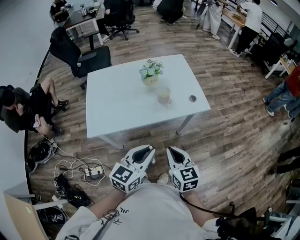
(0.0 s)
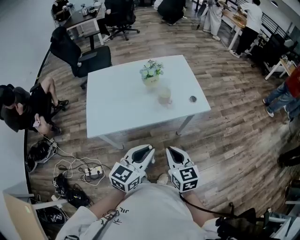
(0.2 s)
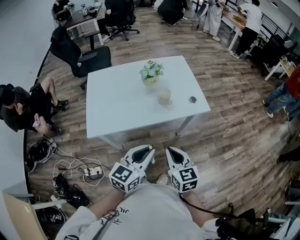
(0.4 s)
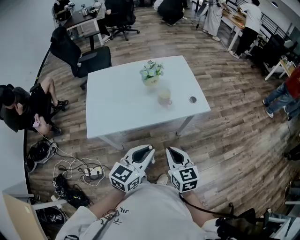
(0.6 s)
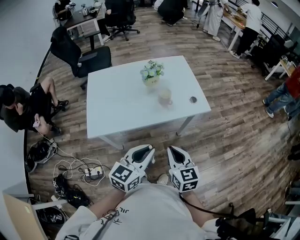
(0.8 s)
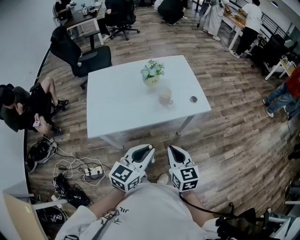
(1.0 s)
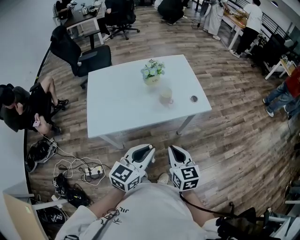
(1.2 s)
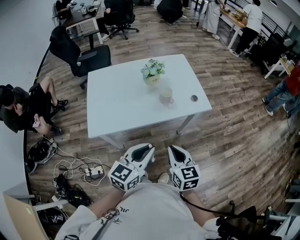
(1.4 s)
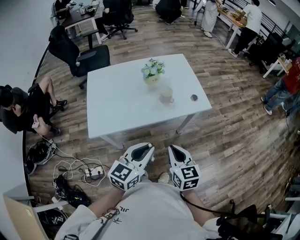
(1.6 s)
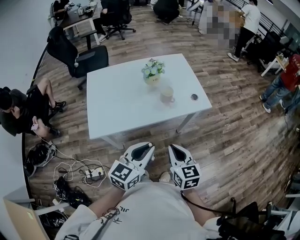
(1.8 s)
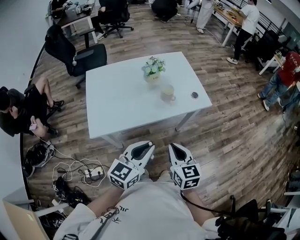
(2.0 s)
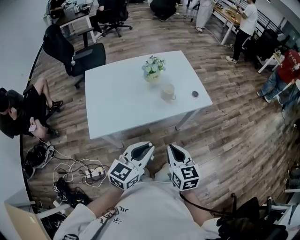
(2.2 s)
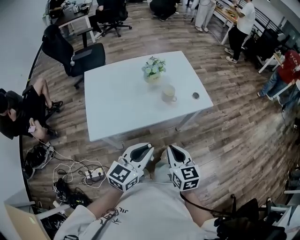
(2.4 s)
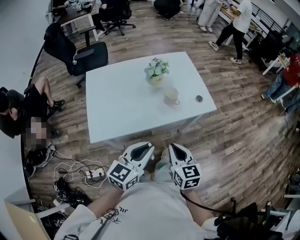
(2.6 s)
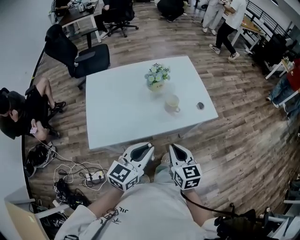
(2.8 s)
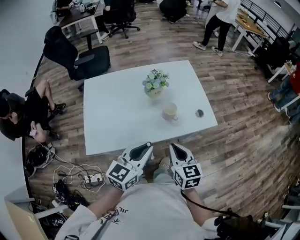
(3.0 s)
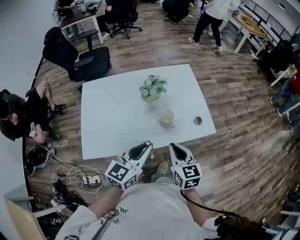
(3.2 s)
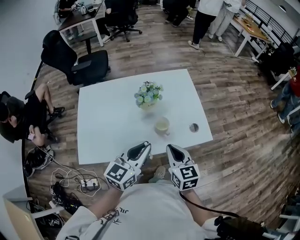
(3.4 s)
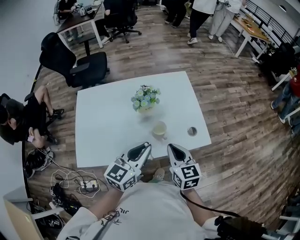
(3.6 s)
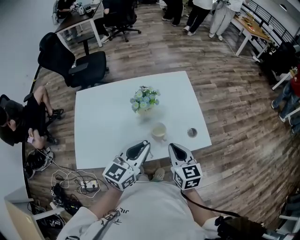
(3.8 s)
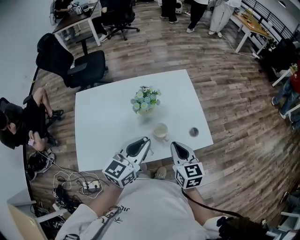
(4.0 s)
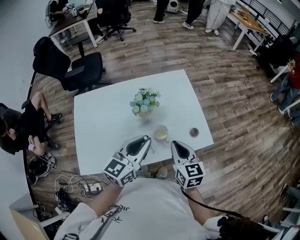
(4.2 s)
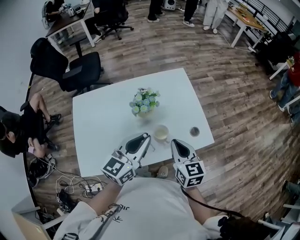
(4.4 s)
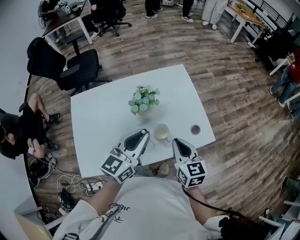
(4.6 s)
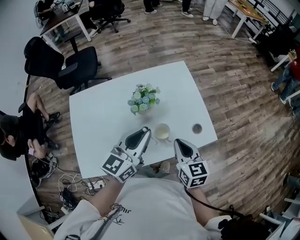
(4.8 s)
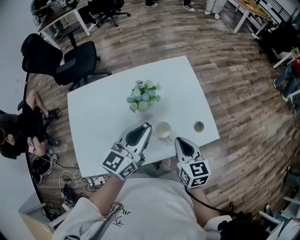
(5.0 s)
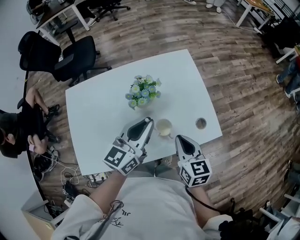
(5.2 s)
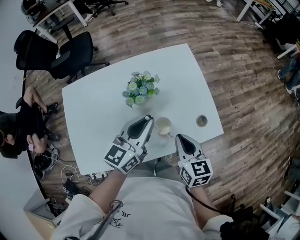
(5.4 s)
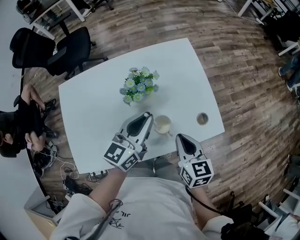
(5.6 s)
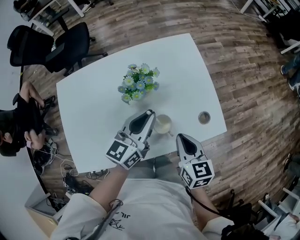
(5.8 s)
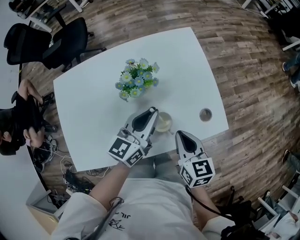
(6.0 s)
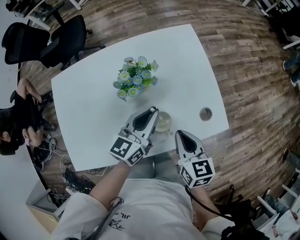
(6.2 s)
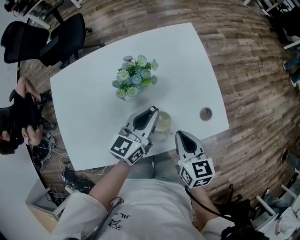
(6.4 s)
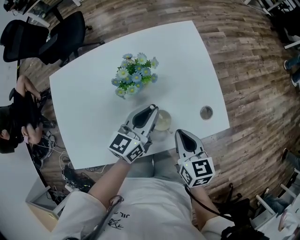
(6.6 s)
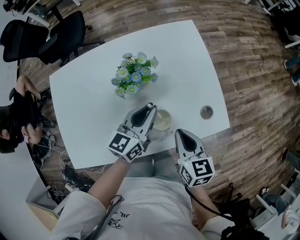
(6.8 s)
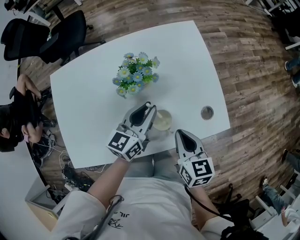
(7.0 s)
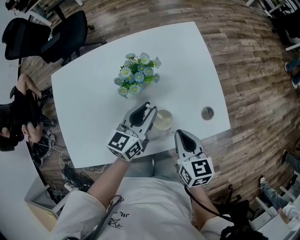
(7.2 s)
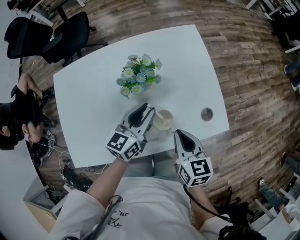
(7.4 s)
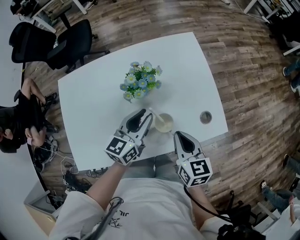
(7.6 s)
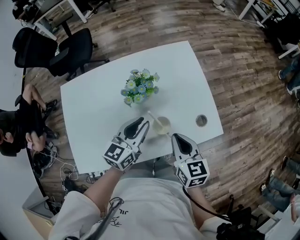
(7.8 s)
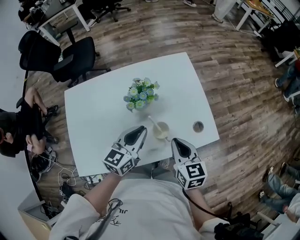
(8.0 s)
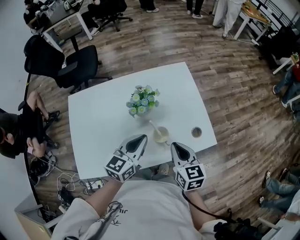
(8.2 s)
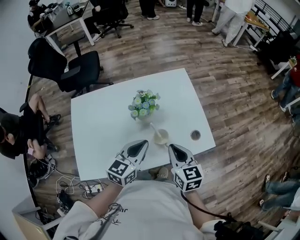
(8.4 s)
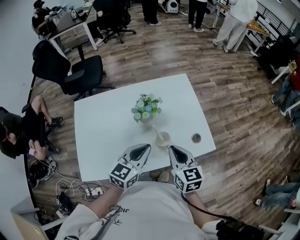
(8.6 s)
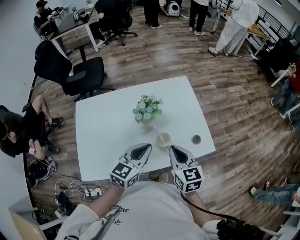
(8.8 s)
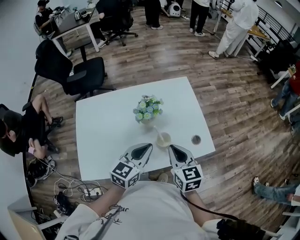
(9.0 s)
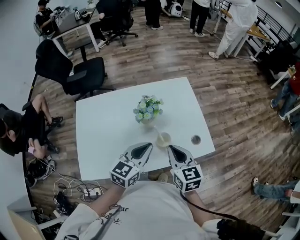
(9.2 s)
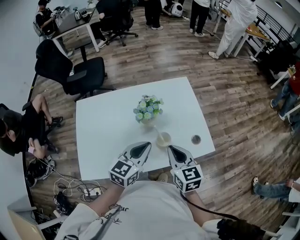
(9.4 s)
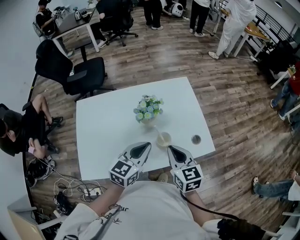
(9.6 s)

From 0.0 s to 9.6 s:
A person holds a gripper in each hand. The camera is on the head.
From 0.0 s to 1.6 s: The grippers move only a little.
From 1.6 s to 3.2 s: Both grippers move forward, roughly 20 cm.
From 3.2 s to 4.8 s: The two grippers go about 15 cm forward.
From 4.8 s to 6.4 s: The left gripper heads downward and forward, covering approximately 15 cm. Meanwhile the right gripper is displaced downward by approximately 10 cm.
From 6.4 s to 8.0 s: The right gripper is displaced upward by approximately 5 cm. Meanwhile the left gripper moves about 10 cm.
From 8.0 s to 9.6 s: The right gripper heads upward, covering some 5 cm. The left gripper travels upward and backward by approximately 10 cm.

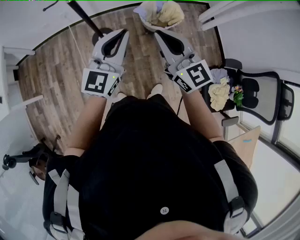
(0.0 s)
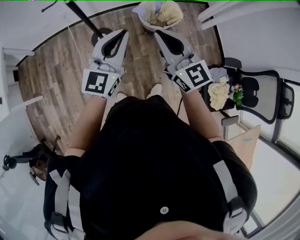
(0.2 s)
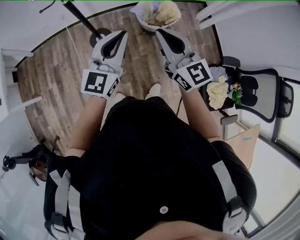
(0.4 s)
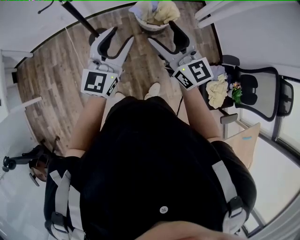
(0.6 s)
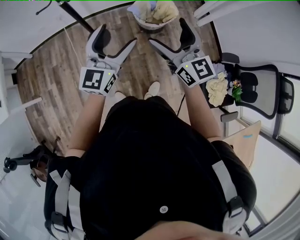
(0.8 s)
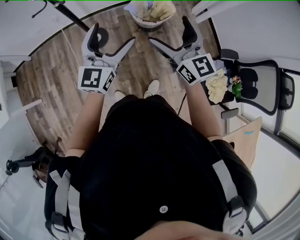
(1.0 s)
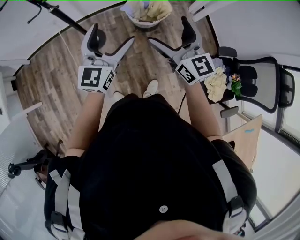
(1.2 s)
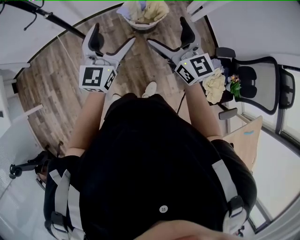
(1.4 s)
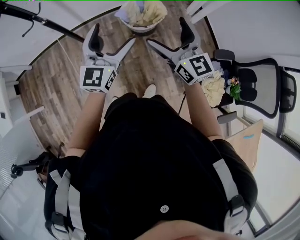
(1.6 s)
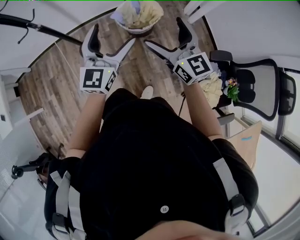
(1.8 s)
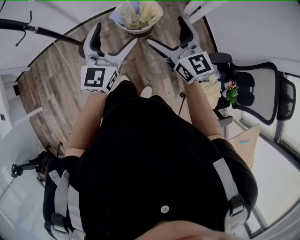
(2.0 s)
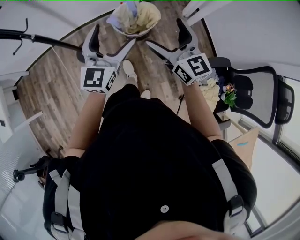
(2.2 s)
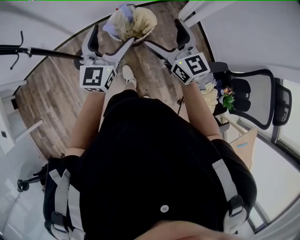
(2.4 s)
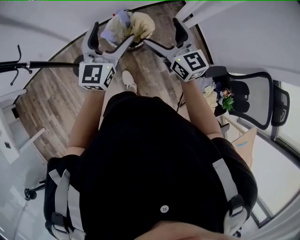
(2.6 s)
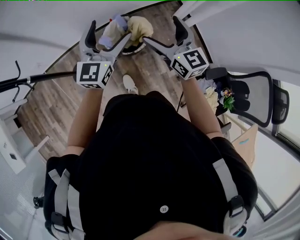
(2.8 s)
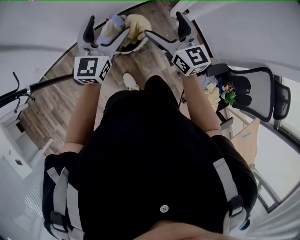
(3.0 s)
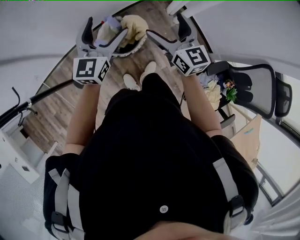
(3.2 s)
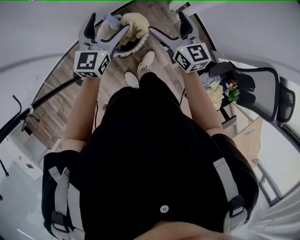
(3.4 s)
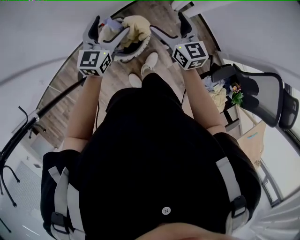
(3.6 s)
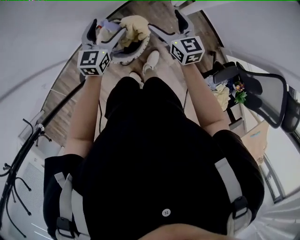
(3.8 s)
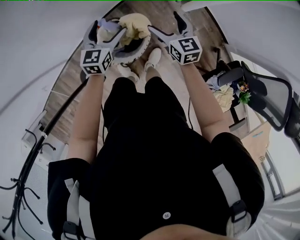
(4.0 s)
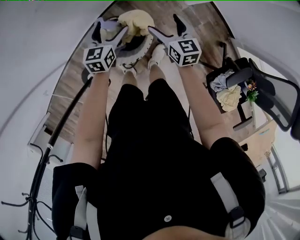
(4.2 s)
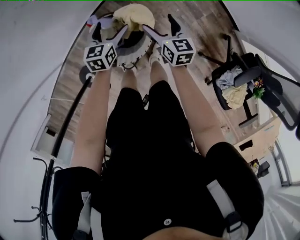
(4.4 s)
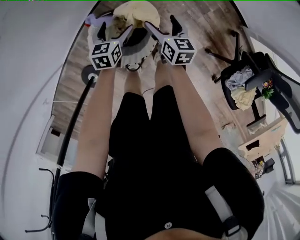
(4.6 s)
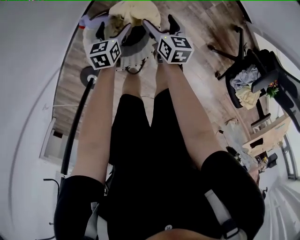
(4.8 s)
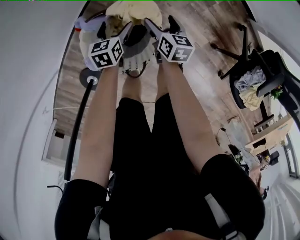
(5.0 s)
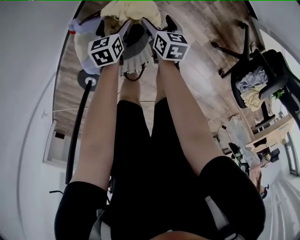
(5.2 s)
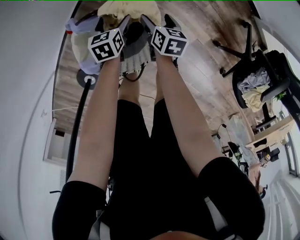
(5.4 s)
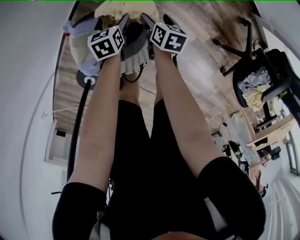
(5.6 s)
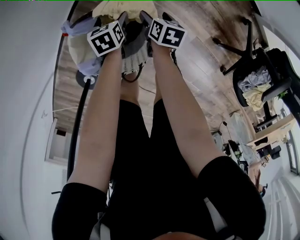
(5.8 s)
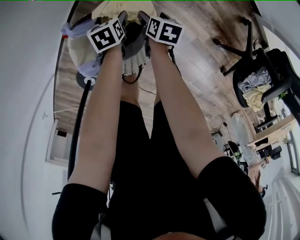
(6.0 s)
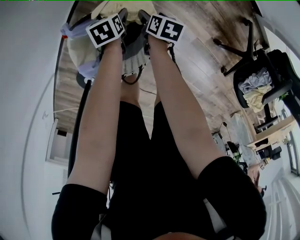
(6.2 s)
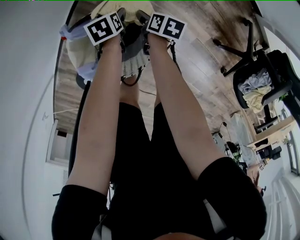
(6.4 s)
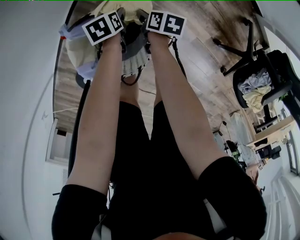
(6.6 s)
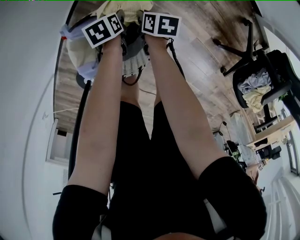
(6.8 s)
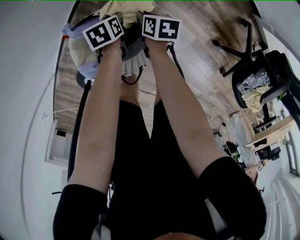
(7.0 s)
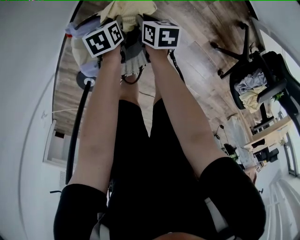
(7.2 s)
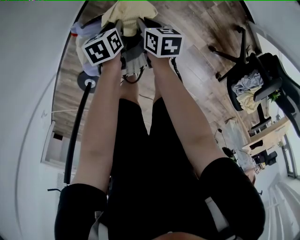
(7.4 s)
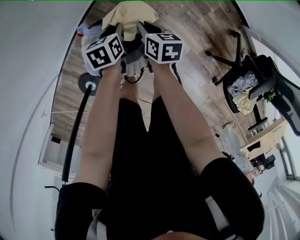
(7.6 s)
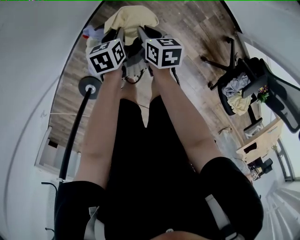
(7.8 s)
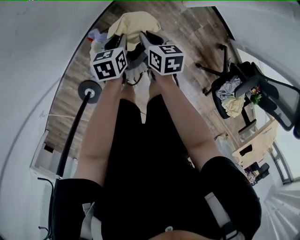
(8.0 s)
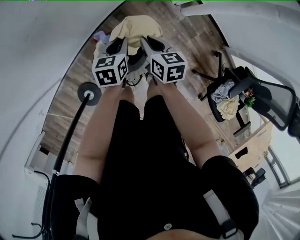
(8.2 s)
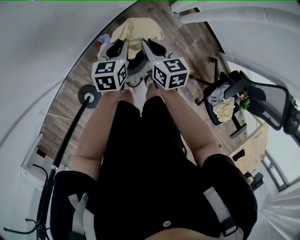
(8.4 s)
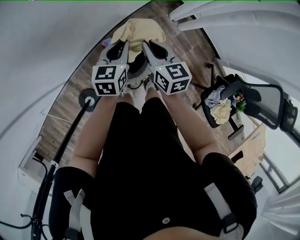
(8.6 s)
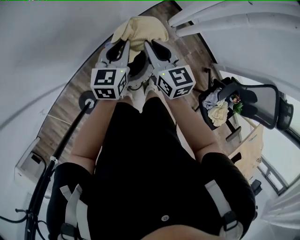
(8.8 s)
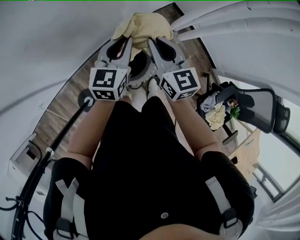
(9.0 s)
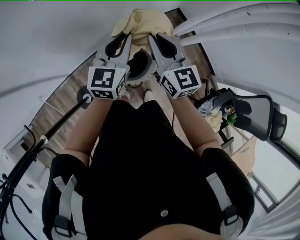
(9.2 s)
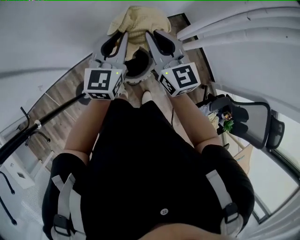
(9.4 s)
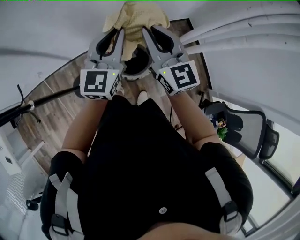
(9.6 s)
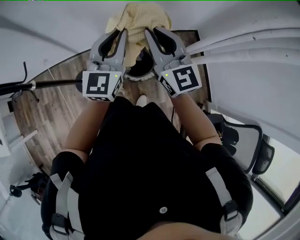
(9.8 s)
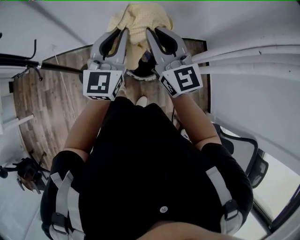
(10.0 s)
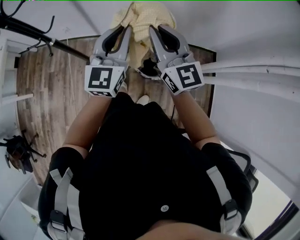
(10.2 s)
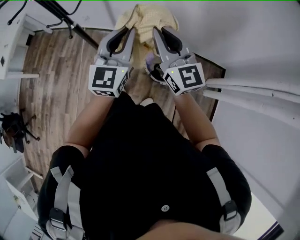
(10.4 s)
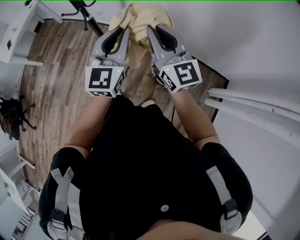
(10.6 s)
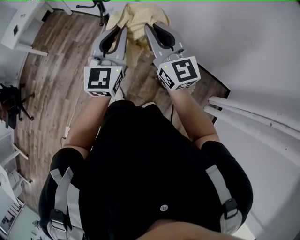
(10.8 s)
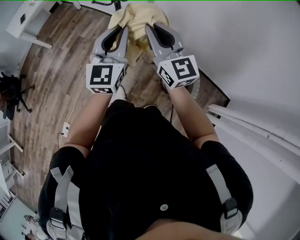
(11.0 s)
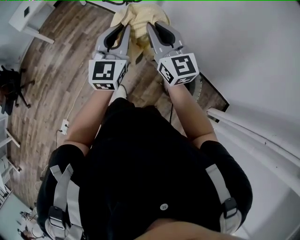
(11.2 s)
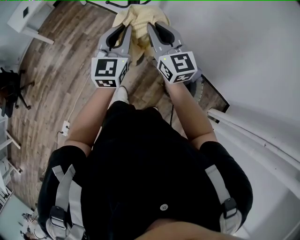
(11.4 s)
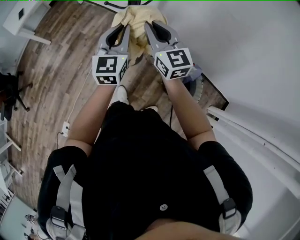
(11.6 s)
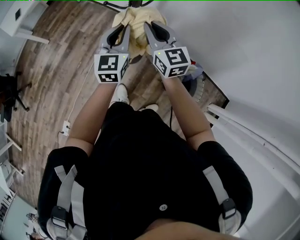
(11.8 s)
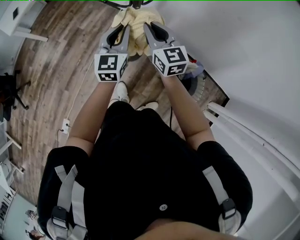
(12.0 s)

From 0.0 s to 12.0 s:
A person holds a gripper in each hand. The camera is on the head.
From 0.0 s to 1.6 s: Both grippers travel together to the right, about 20 cm. The left gripper opens up, while the right gripper opens its fingers.
From 1.6 s to 3.0 s: Both grippers travel together forward, about 35 cm.
From 3.0 s to 4.4 s: The two grippers go about 50 cm downward and forward. The right gripper changes its angle by approximately 40 degrees. Meanwhile the left gripper tilts its fingers approximately 40 degrees downward.
From 4.4 s to 6.0 s: Both grippers travel together downward, about 30 cm. The left gripper tips its fingers downward by approximately 30 degrees, while the right gripper tilts its fingers approximately 30 degrees downward.
From 6.0 s to 7.6 s: The left gripper moves upward, some 15 cm, and closes, while the right gripper heads upward and to the left, covering approximately 20 cm, swivels about 20 degrees, and closes.
From 7.6 s to 9.0 s: Both grippers travel together upward, about 50 cm. The right gripper tilts its fingers about 30 degrees upward; the left gripper angles its fingers upward, by some 40 degrees.
From 9.0 s to 10.4 s: The left gripper shifts by approximately 40 cm, and turns by roughly 60 degrees. Meanwhile the right gripper changes place by some 35 cm, and swivels about 60 degrees.
From 10.4 s to 12.0 s: Both grippers travel together to the left, forward and downward, roughly 40 cm. The left gripper turns by roughly 30 degrees. The right gripper rotates approximately 30 degrees.

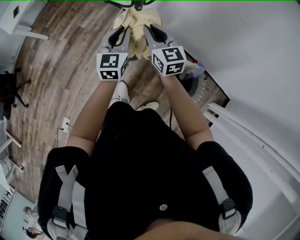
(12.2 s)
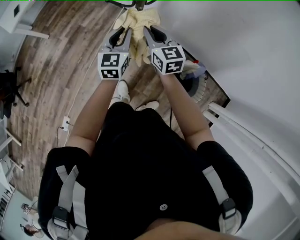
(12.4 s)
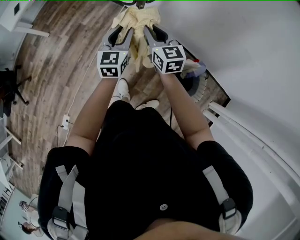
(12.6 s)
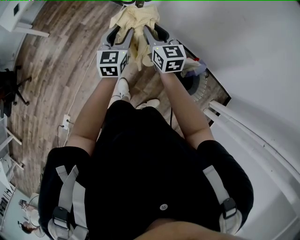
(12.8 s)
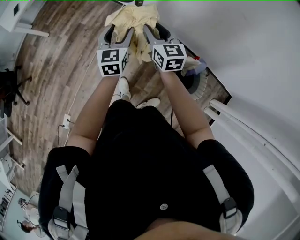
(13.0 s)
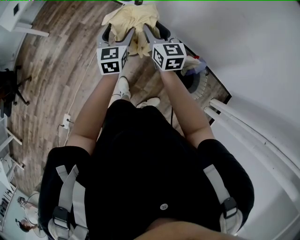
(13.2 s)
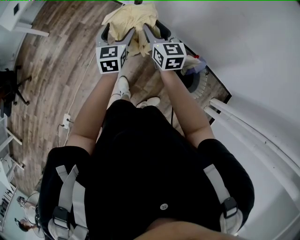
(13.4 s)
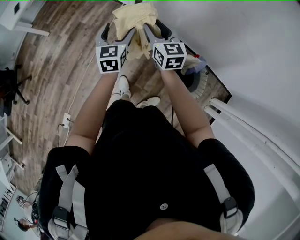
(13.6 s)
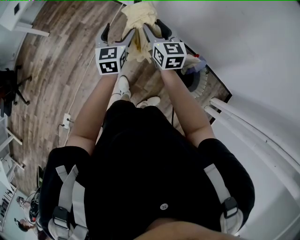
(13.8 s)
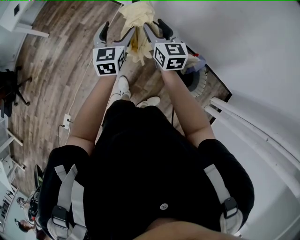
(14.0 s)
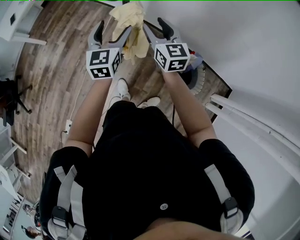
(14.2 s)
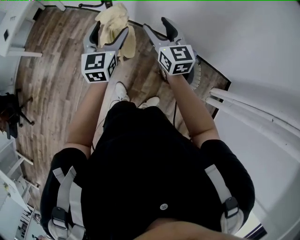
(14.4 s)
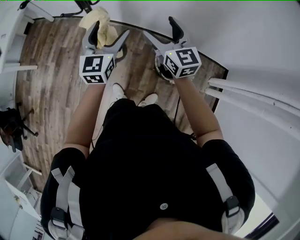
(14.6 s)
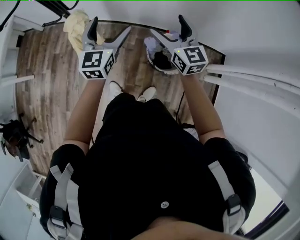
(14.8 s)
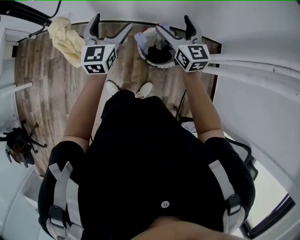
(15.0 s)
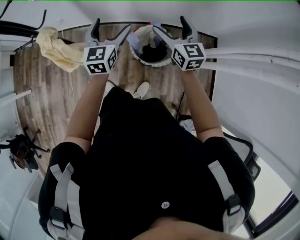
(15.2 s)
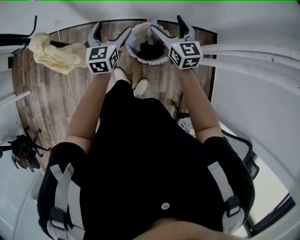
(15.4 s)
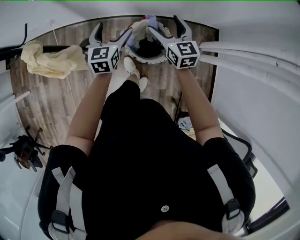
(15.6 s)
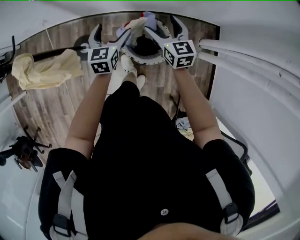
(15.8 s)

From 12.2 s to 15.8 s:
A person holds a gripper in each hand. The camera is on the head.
From 12.2 s to 14.0 s: The left gripper opens up.
From 14.0 s to 15.8 s: Both grippers are carried about 50 cm. The right gripper rotates about 30 degrees, and opens up, while the left gripper rotates about 40 degrees.
